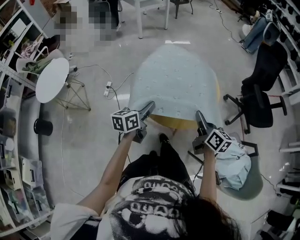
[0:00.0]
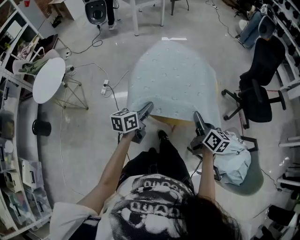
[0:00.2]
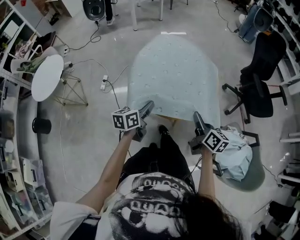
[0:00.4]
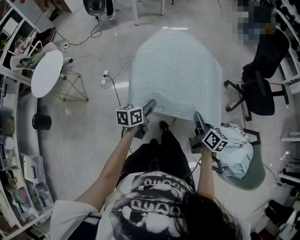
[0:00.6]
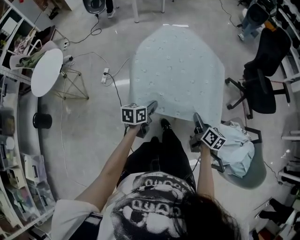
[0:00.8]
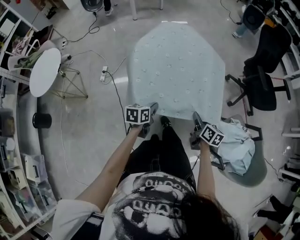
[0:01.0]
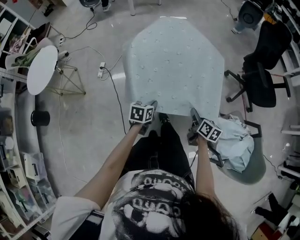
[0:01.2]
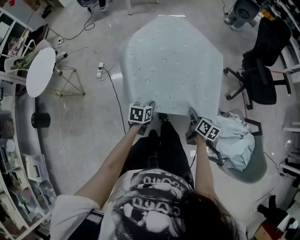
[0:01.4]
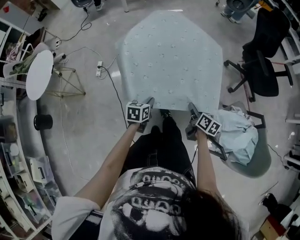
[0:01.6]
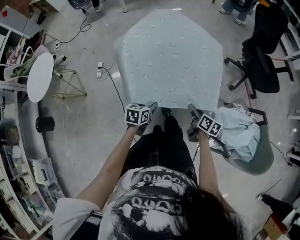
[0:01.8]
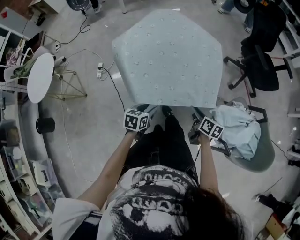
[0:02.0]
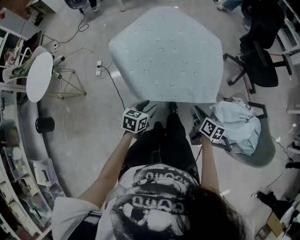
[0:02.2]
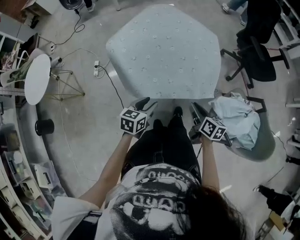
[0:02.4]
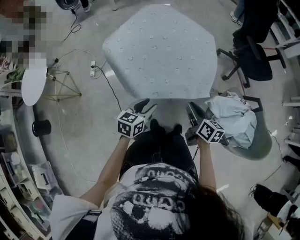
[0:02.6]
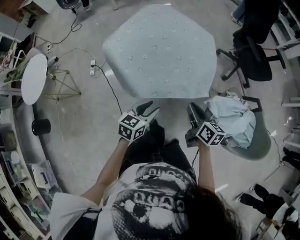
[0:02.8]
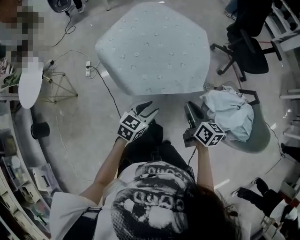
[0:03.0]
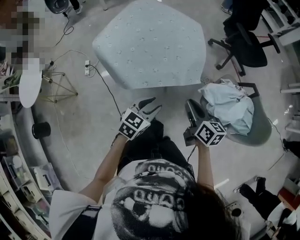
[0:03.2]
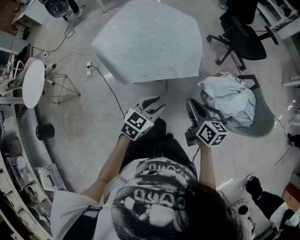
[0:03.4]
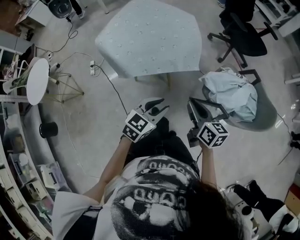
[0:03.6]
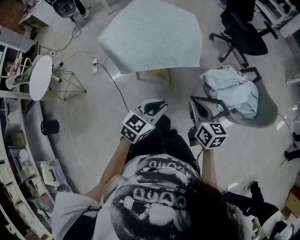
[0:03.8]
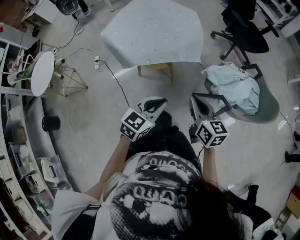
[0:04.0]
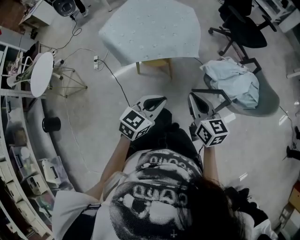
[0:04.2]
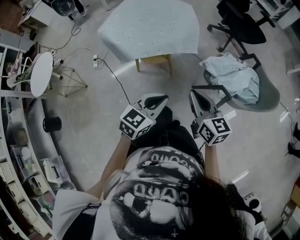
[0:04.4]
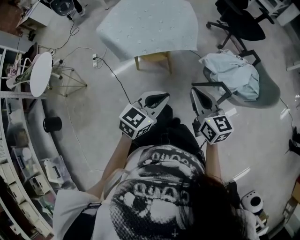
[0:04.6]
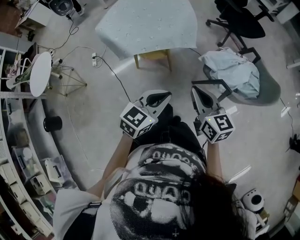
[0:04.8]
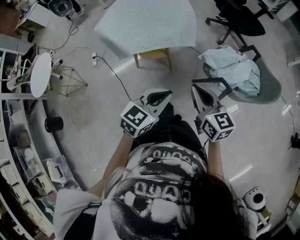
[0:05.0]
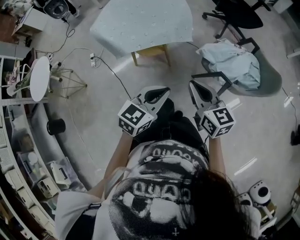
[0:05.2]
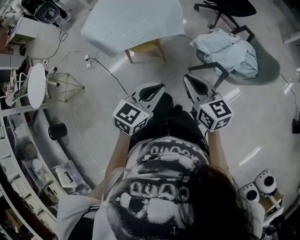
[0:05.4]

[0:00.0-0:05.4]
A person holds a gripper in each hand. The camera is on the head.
0:00.0 to 0:01.4: Both grippers move downward, about 20 cm. The left gripper tilts its fingers about 30 degrees downward, while the right gripper swivels approximately 20 degrees.
0:01.4 to 0:02.8: The right gripper heads upward and backward, covering some 15 cm, while the left gripper is displaced upward, backward and to the right by approximately 15 cm, swivels some 30 degrees, and opens up.
0:02.8 to 0:04.0: The right gripper shifts roughly 20 cm backward and to the right. The left gripper is displaced backward, to the right and upward by some 20 cm, swivels about 20 degrees, and closes its fingers.
0:04.0 to 0:05.4: The left gripper ends up approximately 5 cm from where it was.

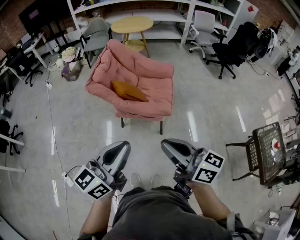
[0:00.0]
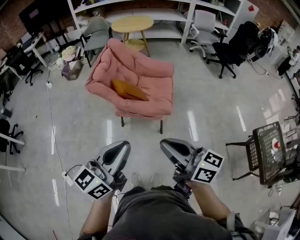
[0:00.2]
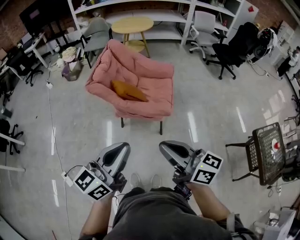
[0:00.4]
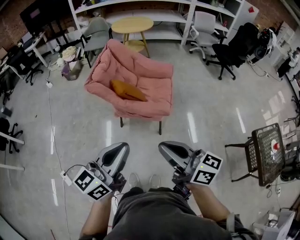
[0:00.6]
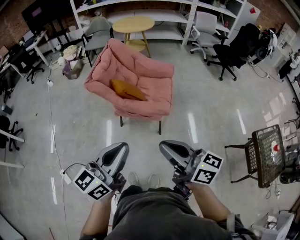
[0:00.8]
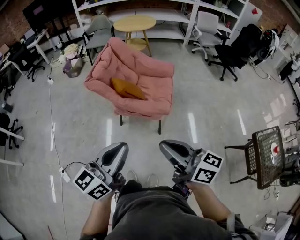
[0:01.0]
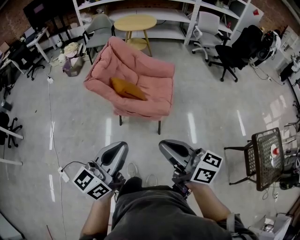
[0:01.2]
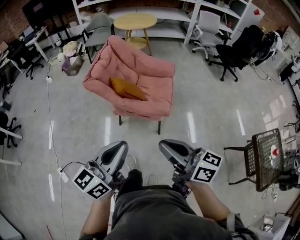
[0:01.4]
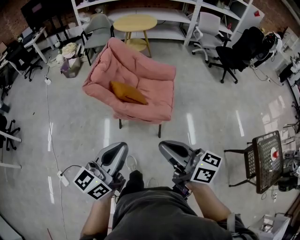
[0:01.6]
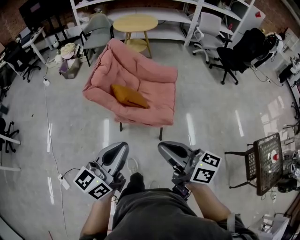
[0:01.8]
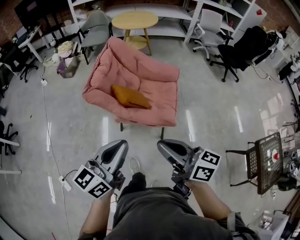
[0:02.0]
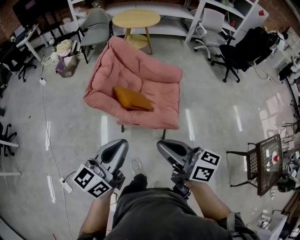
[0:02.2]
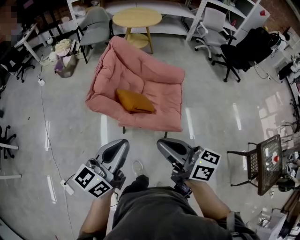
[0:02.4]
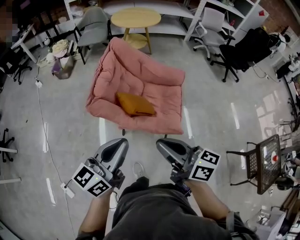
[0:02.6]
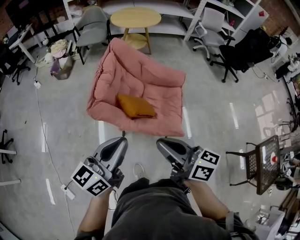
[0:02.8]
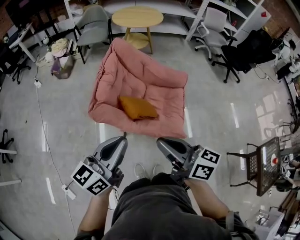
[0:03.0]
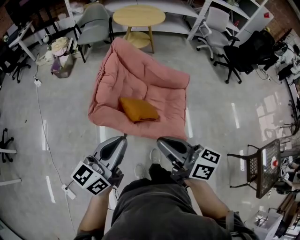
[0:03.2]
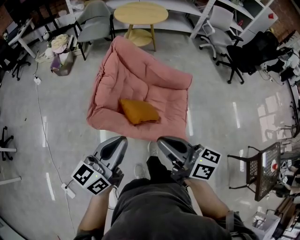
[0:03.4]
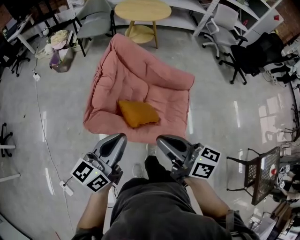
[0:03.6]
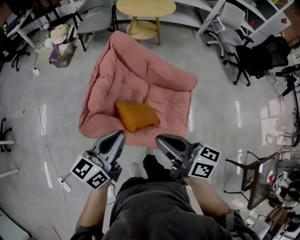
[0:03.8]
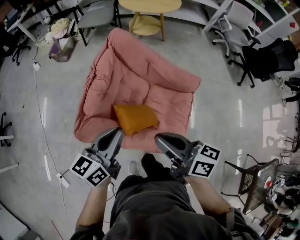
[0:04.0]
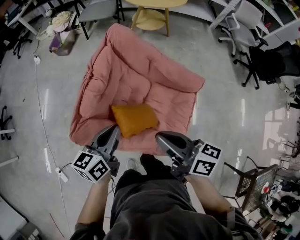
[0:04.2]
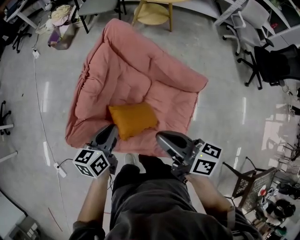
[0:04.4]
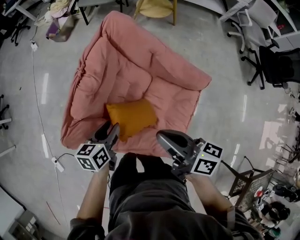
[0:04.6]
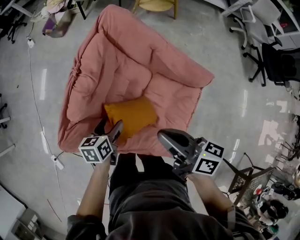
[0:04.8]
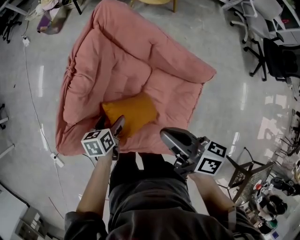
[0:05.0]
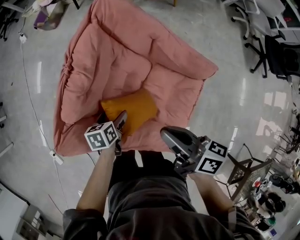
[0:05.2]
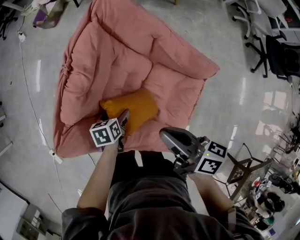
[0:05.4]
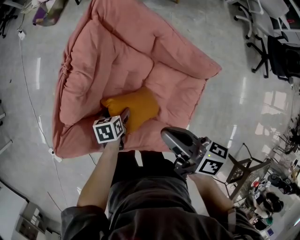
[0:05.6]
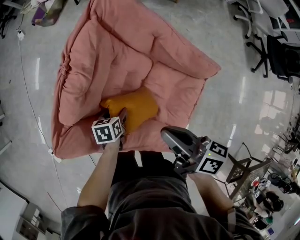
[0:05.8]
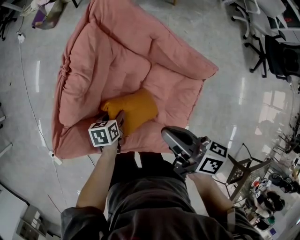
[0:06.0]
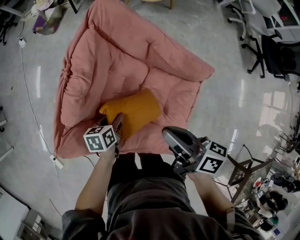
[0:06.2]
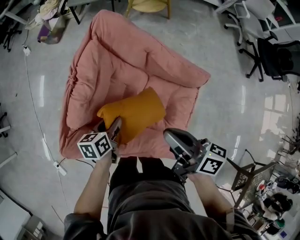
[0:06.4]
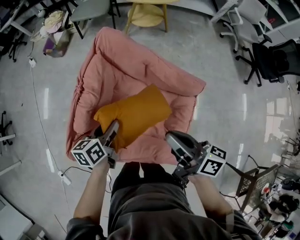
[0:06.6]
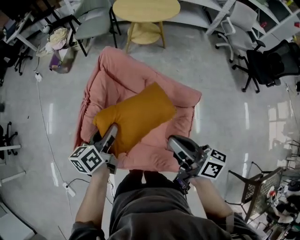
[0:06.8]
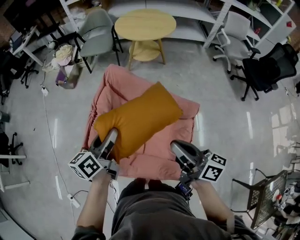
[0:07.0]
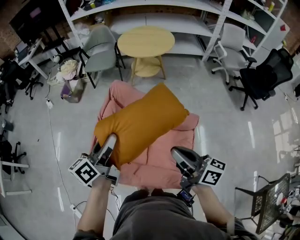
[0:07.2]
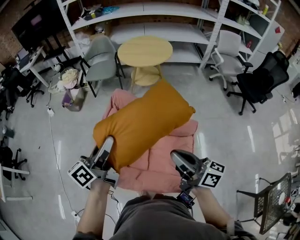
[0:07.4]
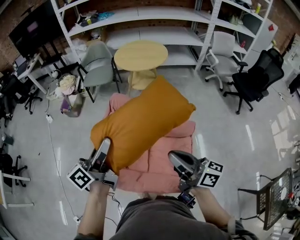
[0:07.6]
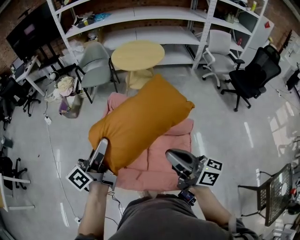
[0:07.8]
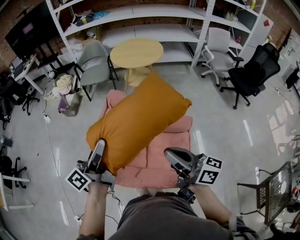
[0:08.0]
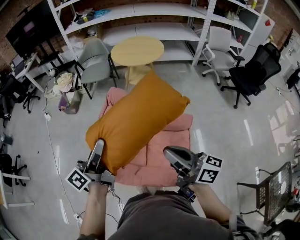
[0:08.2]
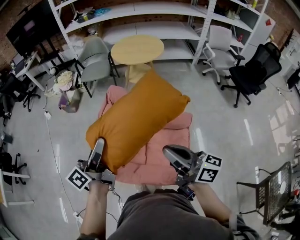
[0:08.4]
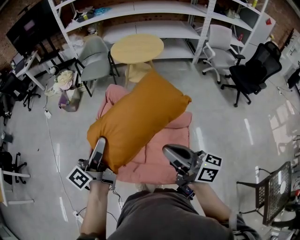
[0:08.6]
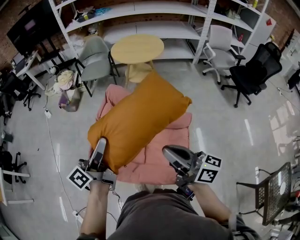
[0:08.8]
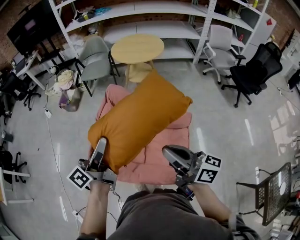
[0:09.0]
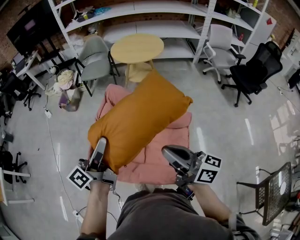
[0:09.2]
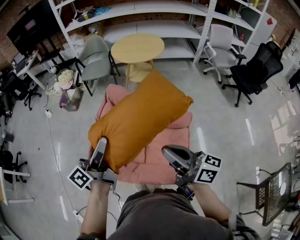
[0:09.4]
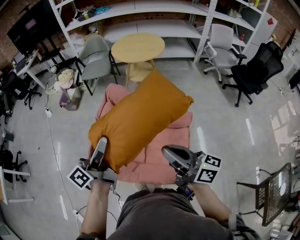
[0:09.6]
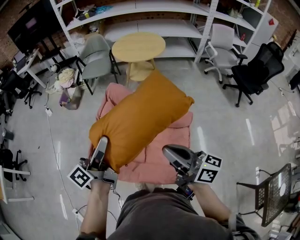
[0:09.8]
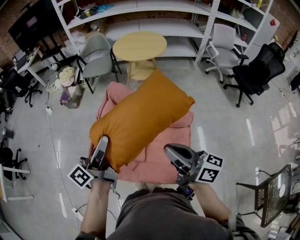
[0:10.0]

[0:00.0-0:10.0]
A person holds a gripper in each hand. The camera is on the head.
0:00.0 to 0:01.4: There are only small adjustments of the grippers.
0:01.4 to 0:02.8: Both grippers travel together forward and to the left, about 30 cm.
0:02.8 to 0:04.2: The right gripper travels forward by some 25 cm. Meanwhile the left gripper travels forward and downward by approximately 30 cm, and rotates roughly 30 degrees.
0:04.2 to 0:05.8: The left gripper moves downward, about 30 cm, points its fingers roughly 40 degrees further downward, and opens. Meanwhile the right gripper heads downward and forward, covering approximately 15 cm.
0:05.8 to 0:07.2: The right gripper is displaced upward by some 20 cm, and swivels some 30 degrees. The left gripper shifts roughly 50 cm upward, and points its fingers approximately 60 degrees further upward.
0:07.2 to 0:08.6: The right gripper moves upward and backward, roughly 10 cm. Meanwhile the left gripper heads backward and upward, covering approximately 10 cm, and swivels some 20 degrees.
0:08.6 to 0:10.0: The grippers make only small movements.

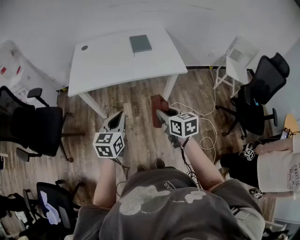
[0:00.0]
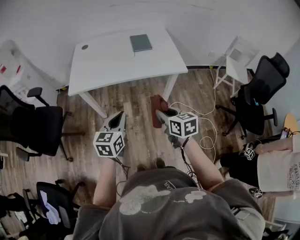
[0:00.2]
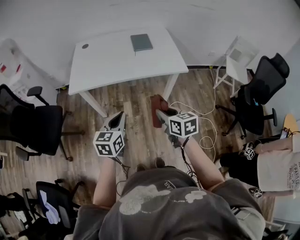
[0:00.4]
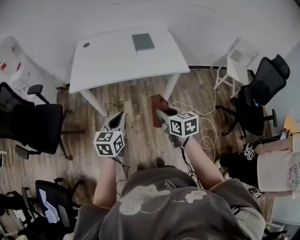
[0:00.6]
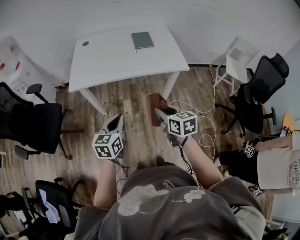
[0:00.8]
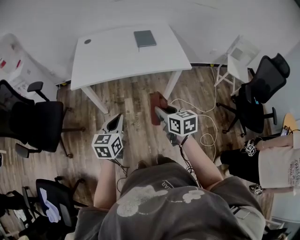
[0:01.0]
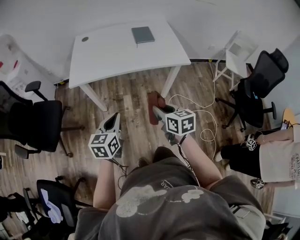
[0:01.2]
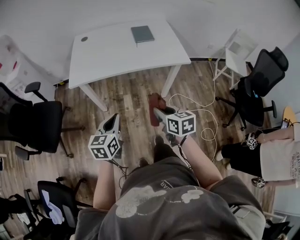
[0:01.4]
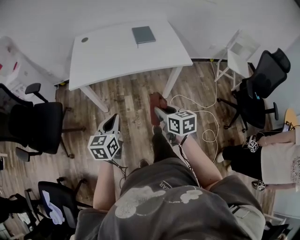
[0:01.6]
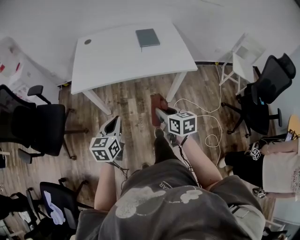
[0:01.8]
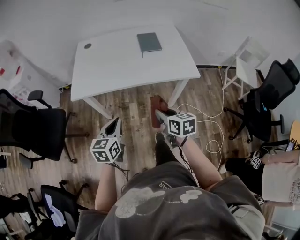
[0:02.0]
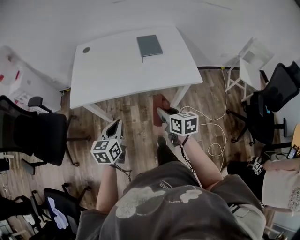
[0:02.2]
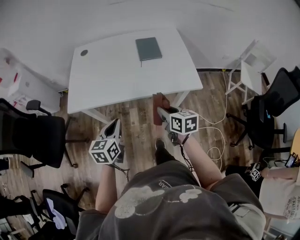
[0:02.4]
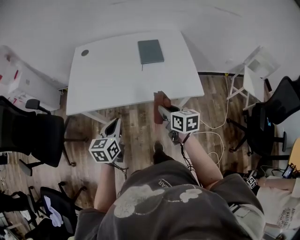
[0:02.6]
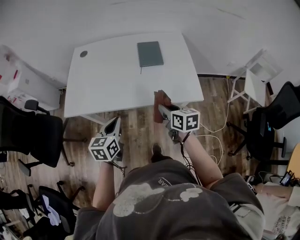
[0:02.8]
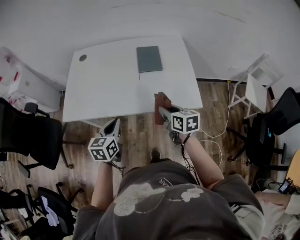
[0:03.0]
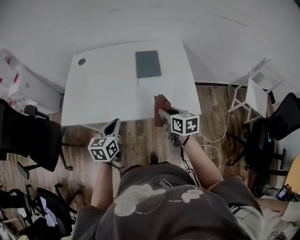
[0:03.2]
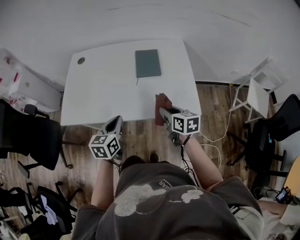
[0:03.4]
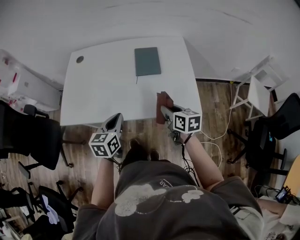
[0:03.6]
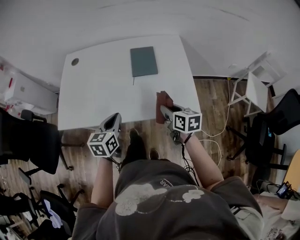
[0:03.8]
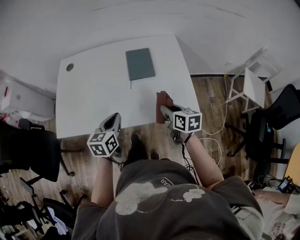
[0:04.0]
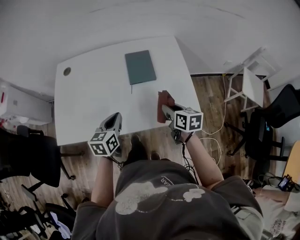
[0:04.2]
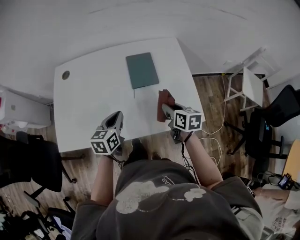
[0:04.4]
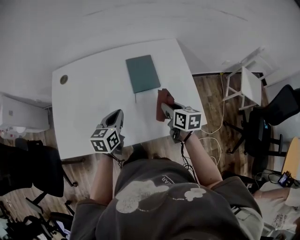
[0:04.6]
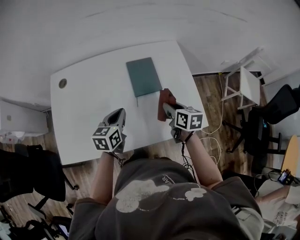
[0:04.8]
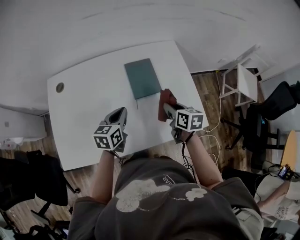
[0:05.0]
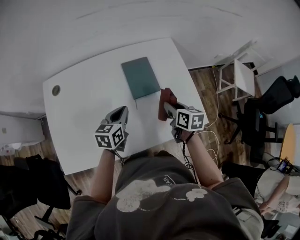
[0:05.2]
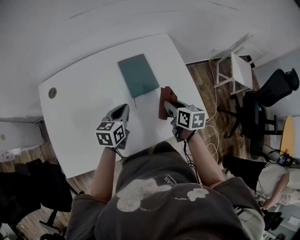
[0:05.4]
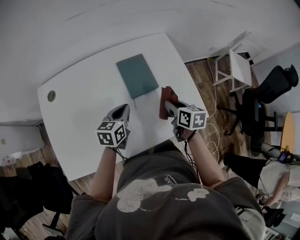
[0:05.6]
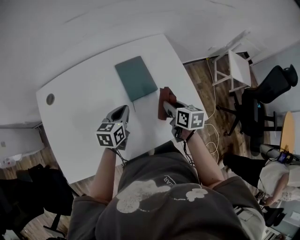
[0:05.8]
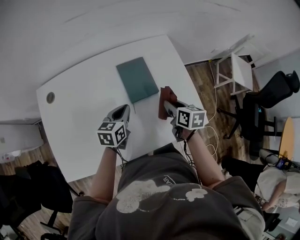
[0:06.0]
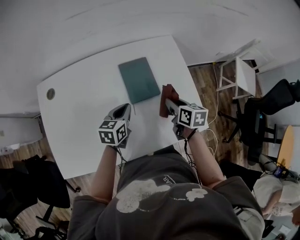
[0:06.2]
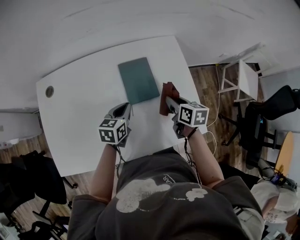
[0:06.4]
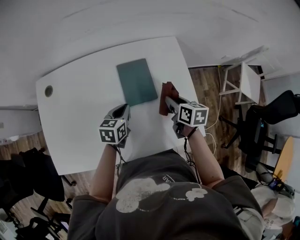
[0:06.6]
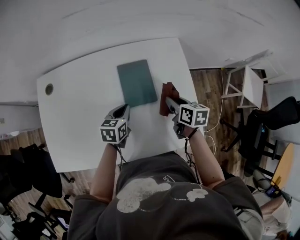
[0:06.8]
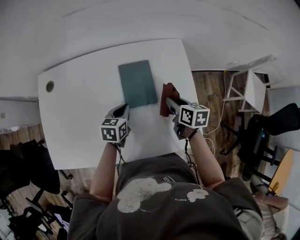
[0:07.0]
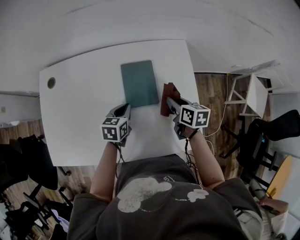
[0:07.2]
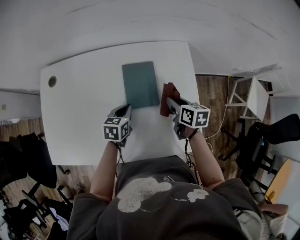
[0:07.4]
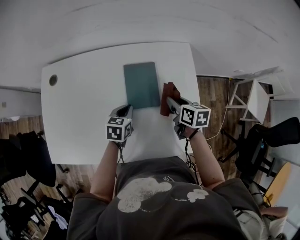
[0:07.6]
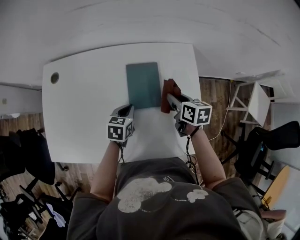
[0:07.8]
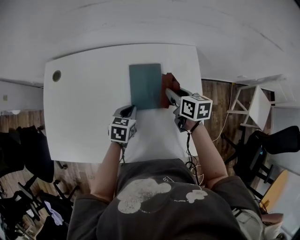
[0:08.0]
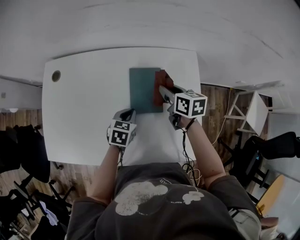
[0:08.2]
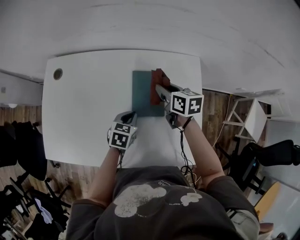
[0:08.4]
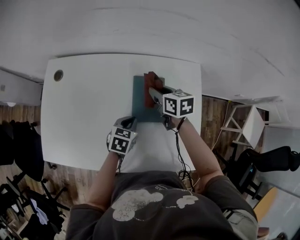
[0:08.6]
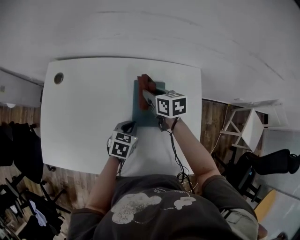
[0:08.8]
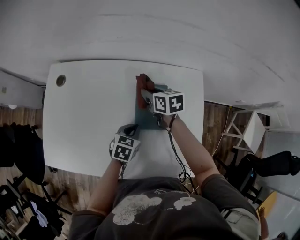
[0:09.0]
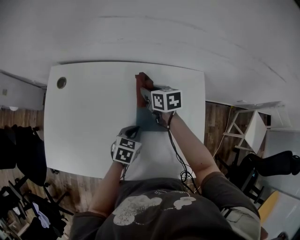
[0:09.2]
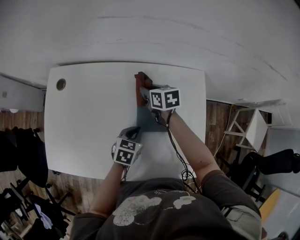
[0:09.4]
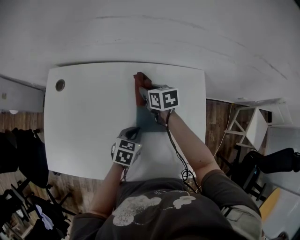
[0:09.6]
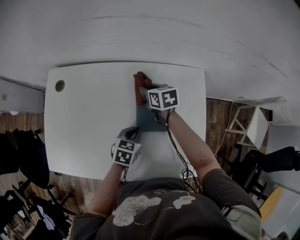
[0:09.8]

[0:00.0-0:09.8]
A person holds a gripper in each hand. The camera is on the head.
0:00.0 to 0:01.4: Both grippers move to the left, approximately 5 cm.
0:01.4 to 0:02.8: Both grippers travel together forward, about 30 cm.
0:02.8 to 0:04.2: The right gripper travels forward and to the right by about 15 cm. The left gripper moves forward, roughly 20 cm.
0:04.2 to 0:05.6: The left gripper travels forward by about 15 cm, and swivels about 20 degrees. The right gripper heads forward, covering some 10 cm.
0:05.6 to 0:07.0: The left gripper travels forward and downward by approximately 10 cm, while the right gripper moves forward, about 10 cm.
0:07.0 to 0:08.4: The right gripper shifts roughly 15 cm forward and to the left.
0:08.4 to 0:09.8: The right gripper moves to the left, forward and downward, about 10 cm.
